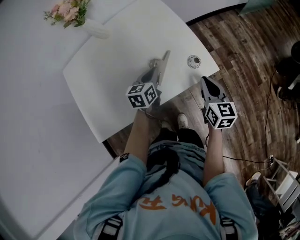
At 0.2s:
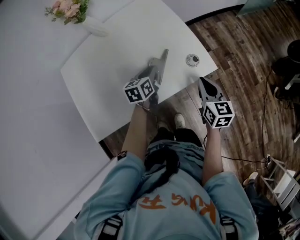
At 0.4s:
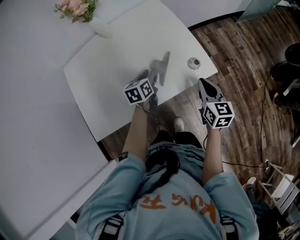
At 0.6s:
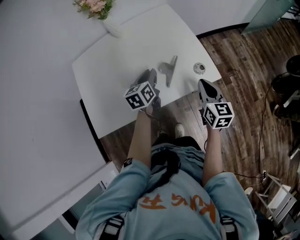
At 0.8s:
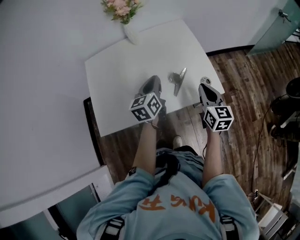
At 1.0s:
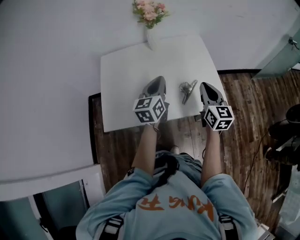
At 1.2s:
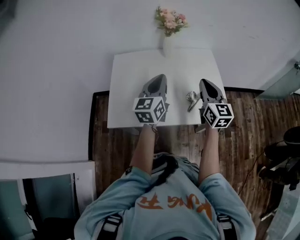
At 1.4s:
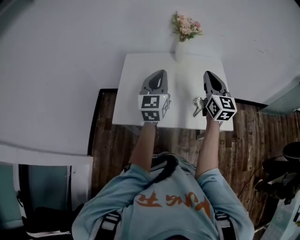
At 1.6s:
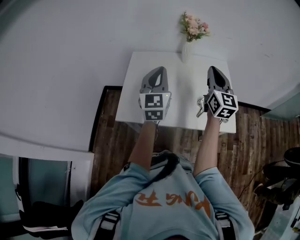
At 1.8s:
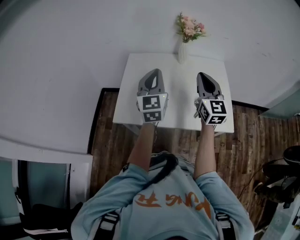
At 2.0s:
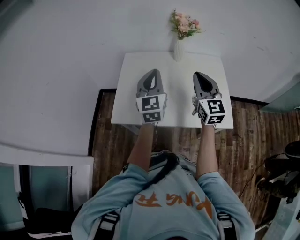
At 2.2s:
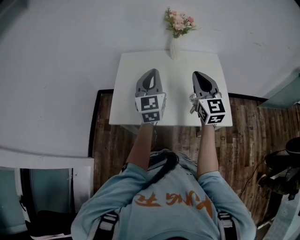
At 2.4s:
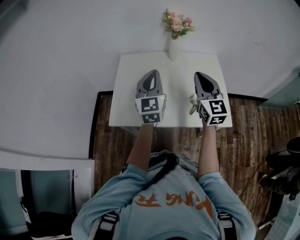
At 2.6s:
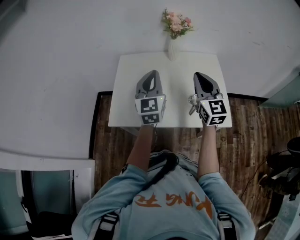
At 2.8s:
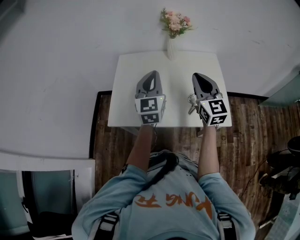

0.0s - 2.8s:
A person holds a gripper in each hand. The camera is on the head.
0.0s - 1.4s: Both grippers move upward, some 30 cm. The left gripper tips its fingers upward by some 30 degrees, and opens, then closes again. The right gripper swivels some 40 degrees.
1.4s - 2.8s: The grippers stay close to where they were, moving slightly.

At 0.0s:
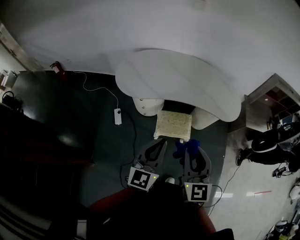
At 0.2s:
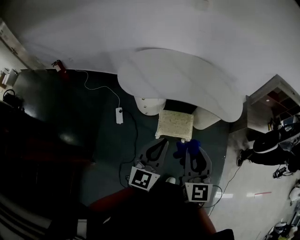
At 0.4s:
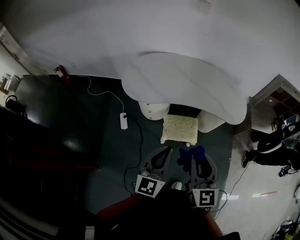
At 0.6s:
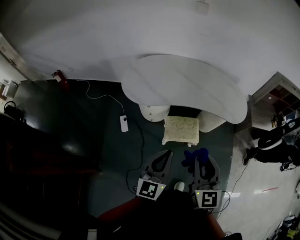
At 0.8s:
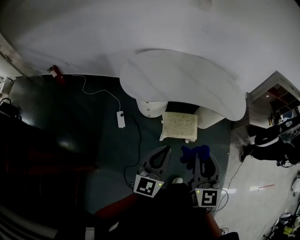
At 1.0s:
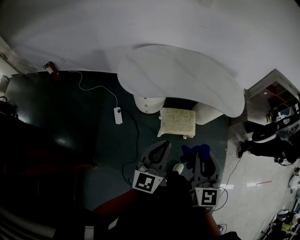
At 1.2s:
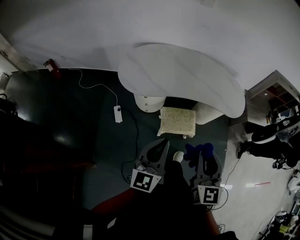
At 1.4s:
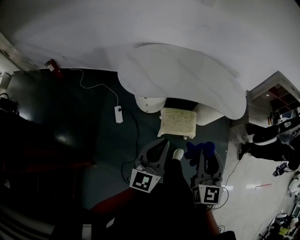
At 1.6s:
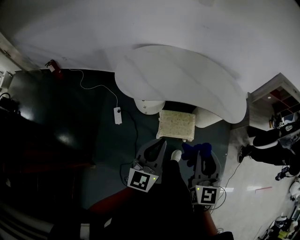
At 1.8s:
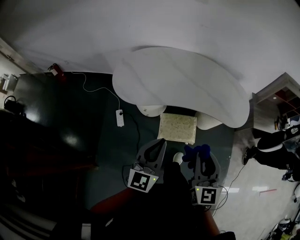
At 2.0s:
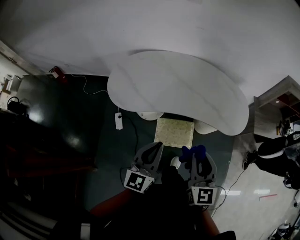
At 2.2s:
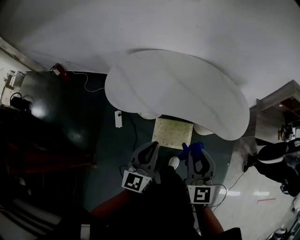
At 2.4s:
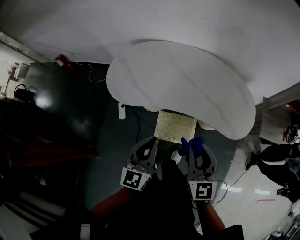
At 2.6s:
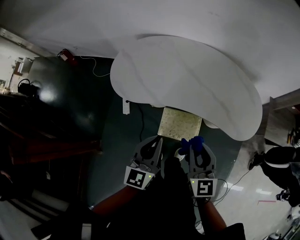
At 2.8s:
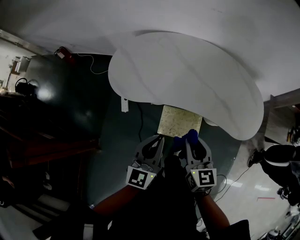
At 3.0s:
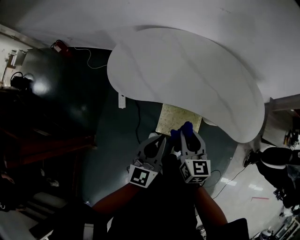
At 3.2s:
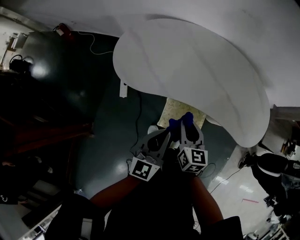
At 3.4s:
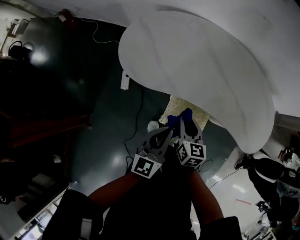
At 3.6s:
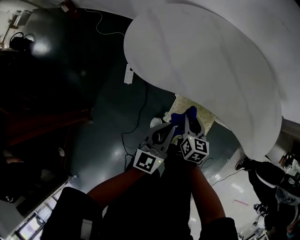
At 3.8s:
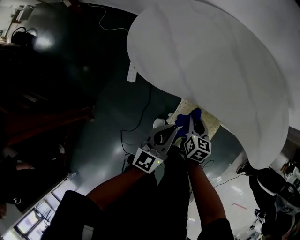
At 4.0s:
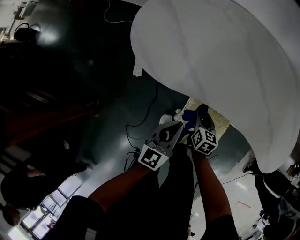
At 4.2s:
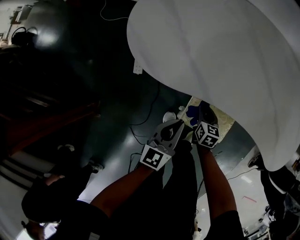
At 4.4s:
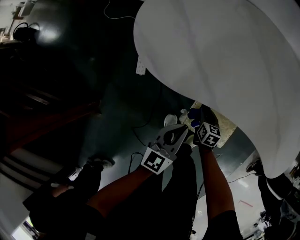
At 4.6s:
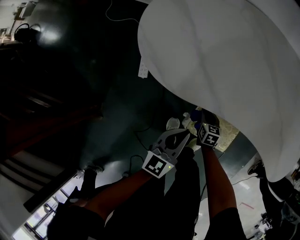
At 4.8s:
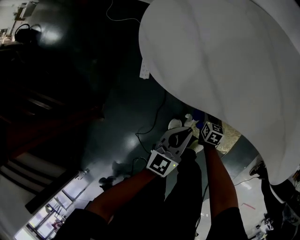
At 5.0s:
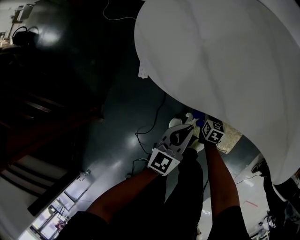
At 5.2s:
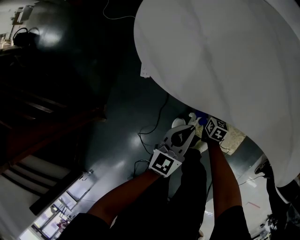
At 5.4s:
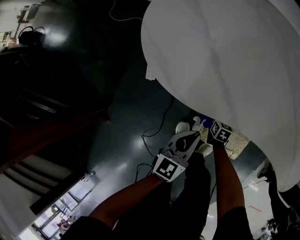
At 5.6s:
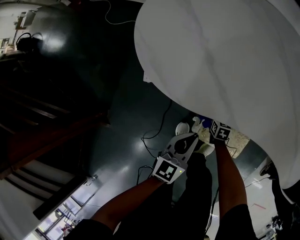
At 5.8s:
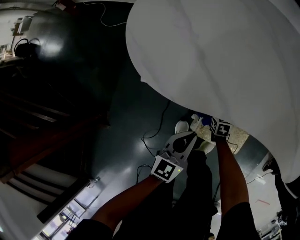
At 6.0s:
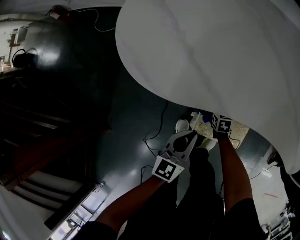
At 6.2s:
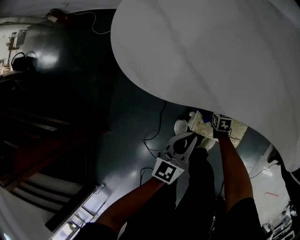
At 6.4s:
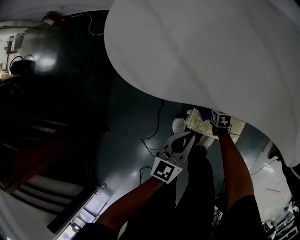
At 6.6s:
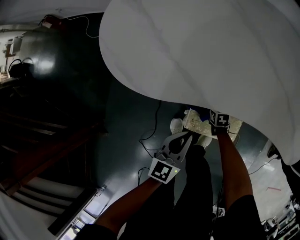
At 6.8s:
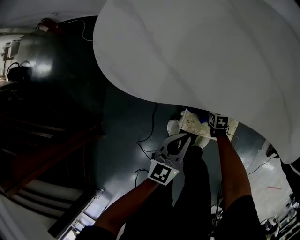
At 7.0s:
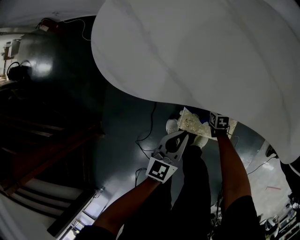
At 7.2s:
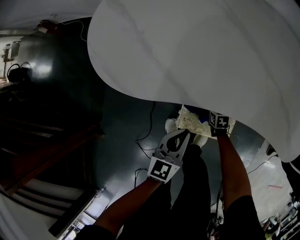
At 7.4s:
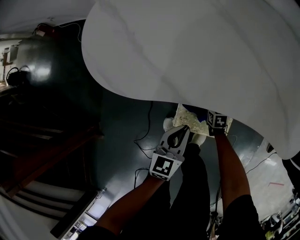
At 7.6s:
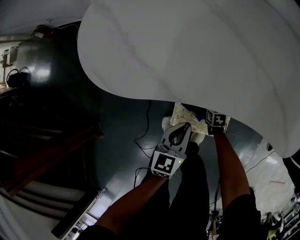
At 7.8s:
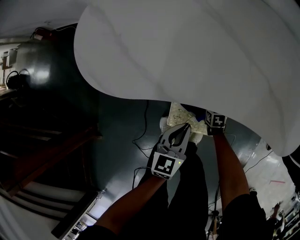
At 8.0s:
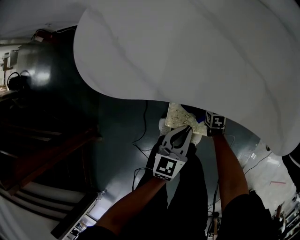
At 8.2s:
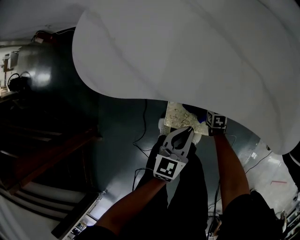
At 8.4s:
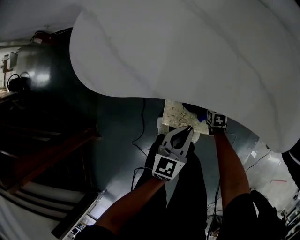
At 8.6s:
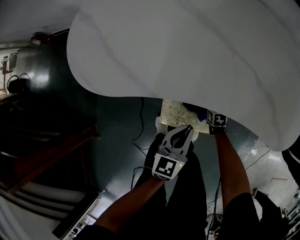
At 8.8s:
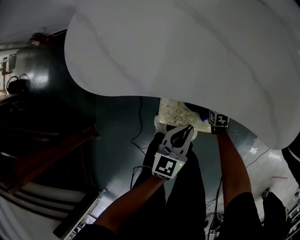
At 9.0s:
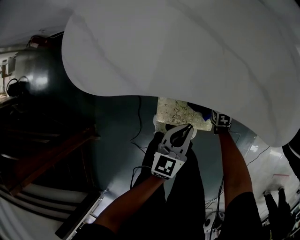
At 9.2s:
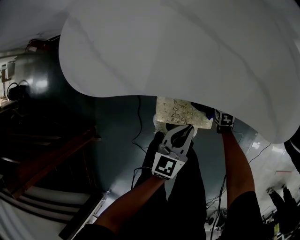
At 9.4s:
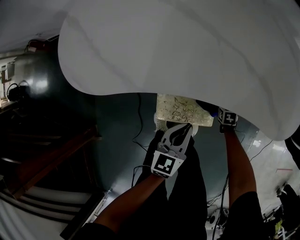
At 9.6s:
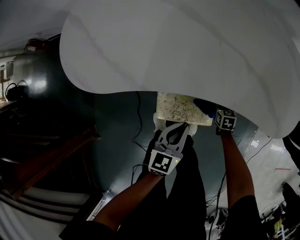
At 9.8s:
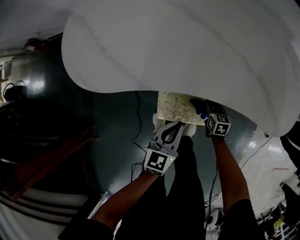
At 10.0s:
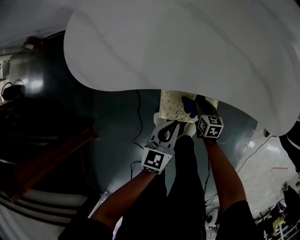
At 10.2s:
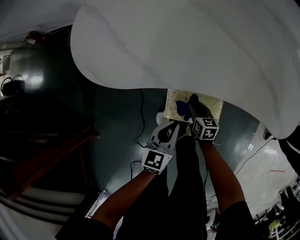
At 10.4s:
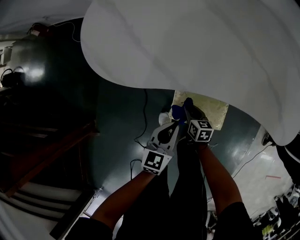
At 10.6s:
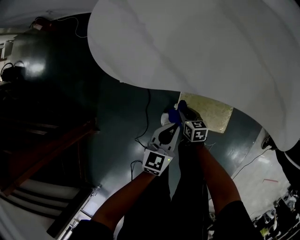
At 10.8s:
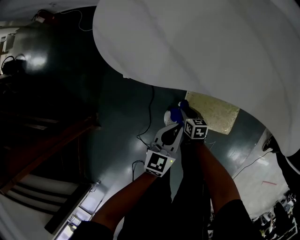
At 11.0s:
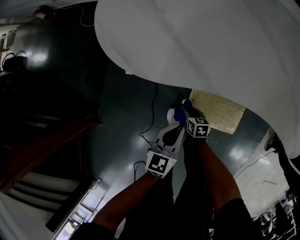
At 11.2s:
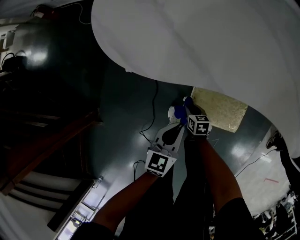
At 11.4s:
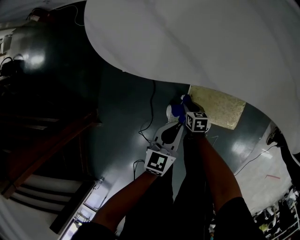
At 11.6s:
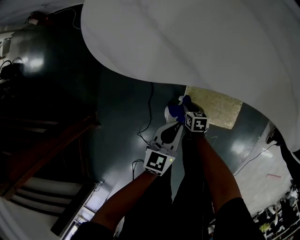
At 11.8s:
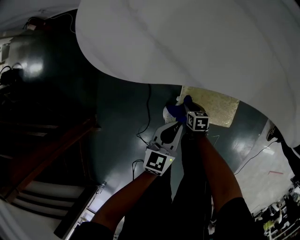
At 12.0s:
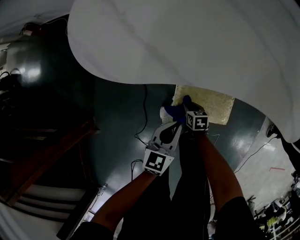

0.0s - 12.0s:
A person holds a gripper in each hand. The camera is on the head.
0.0s - 1.6s: The right gripper moves roughly 5 cm; the left gripper heads to the left, covering about 5 cm.
1.6s - 3.0s: The left gripper travels forward, downward and to the right by about 20 cm. The right gripper shifts some 30 cm forward and downward, and swivels roughly 30 degrees.
3.0s - 4.4s: The right gripper goes about 40 cm downward, and swivels about 30 degrees, while the left gripper travels downward and to the left by approximately 30 cm.
4.4s - 6.0s: The left gripper travels downward by approximately 5 cm. The right gripper goes about 15 cm downward.
6.0s - 7.6s: Both grippers move to the right, about 10 cm.
7.6s - 9.0s: The two grippers go roughly 15 cm to the right.
9.0s - 10.4s: The right gripper shifts roughly 25 cm to the left and upward, and turns by approximately 20 degrees. The left gripper shifts roughly 15 cm to the left.
10.4s - 12.0s: The left gripper goes to the left and returns, some 10 cm each way; the right gripper moves downward, approximately 10 cm.

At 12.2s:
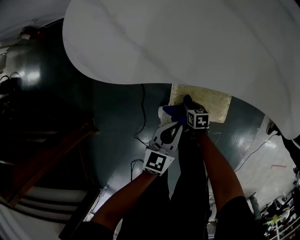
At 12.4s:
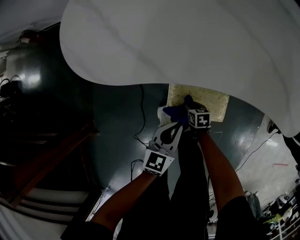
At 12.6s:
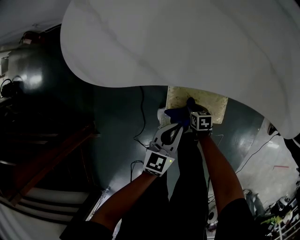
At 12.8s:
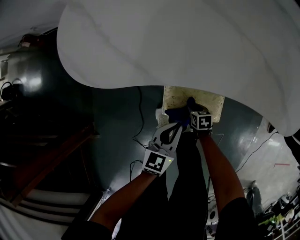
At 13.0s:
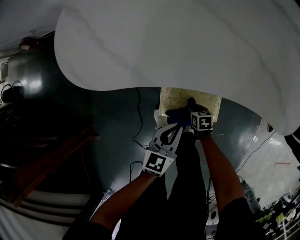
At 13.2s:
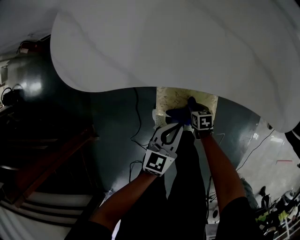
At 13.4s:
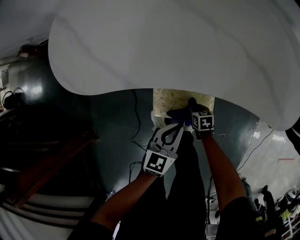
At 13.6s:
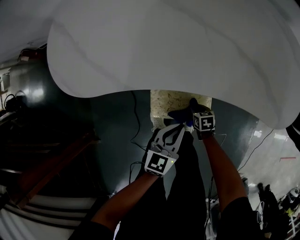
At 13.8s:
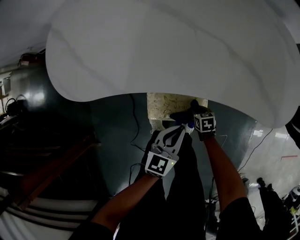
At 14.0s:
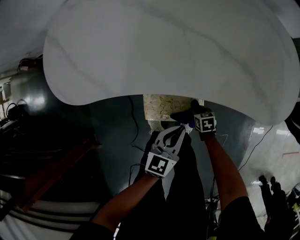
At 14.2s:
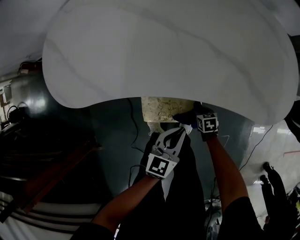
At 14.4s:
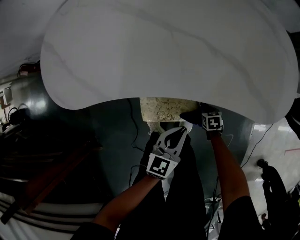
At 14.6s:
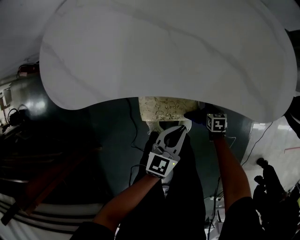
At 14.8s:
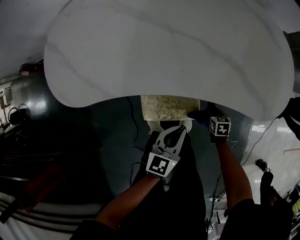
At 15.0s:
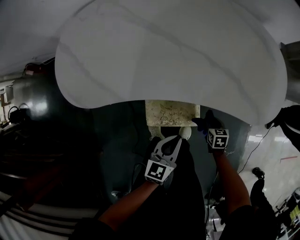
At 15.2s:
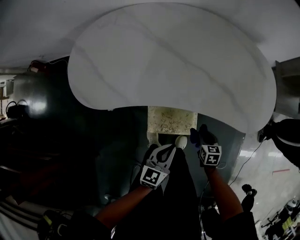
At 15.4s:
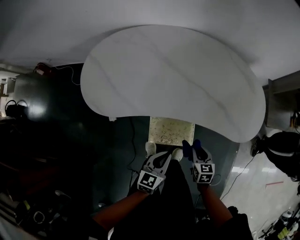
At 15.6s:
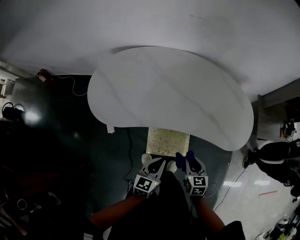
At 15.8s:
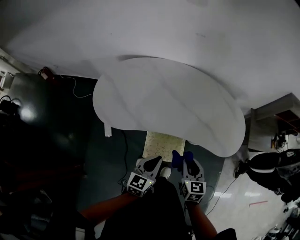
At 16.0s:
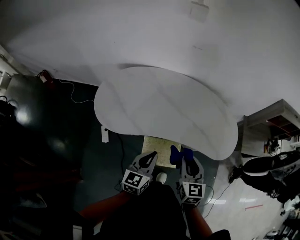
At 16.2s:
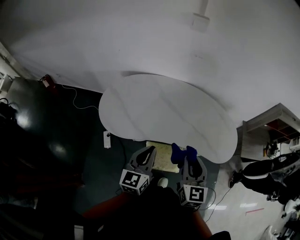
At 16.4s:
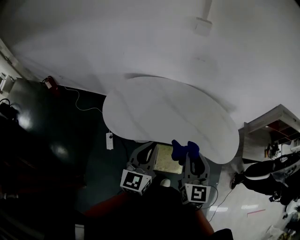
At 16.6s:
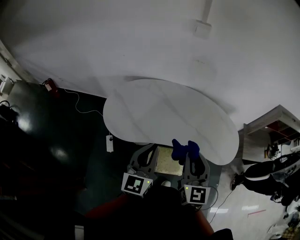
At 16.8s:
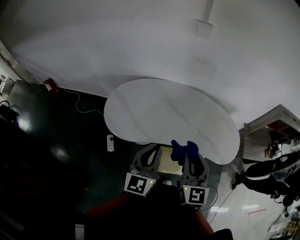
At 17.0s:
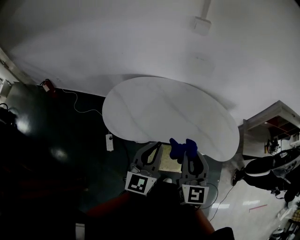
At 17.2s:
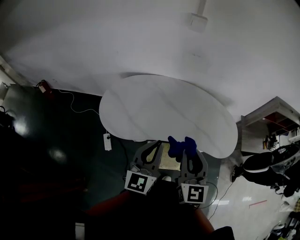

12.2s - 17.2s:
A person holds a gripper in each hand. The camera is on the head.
12.2s - 13.8s: Both grippers travel together to the right, approximately 15 cm.
13.8s - 15.6s: The right gripper goes about 40 cm upward, and swivels approximately 30 degrees, while the left gripper goes some 20 cm upward.
15.6s - 17.2s: The grippers both shift upward by roughly 35 cm. The left gripper points its fingers about 30 degrees further upward. Meanwhile the right gripper angles its fingers upward, by roughly 40 degrees.

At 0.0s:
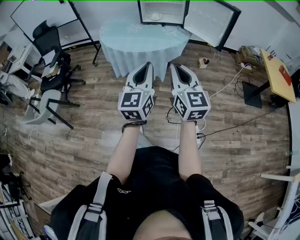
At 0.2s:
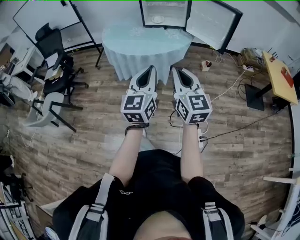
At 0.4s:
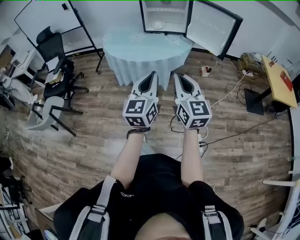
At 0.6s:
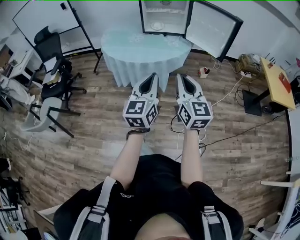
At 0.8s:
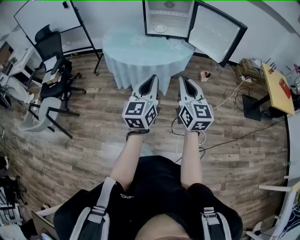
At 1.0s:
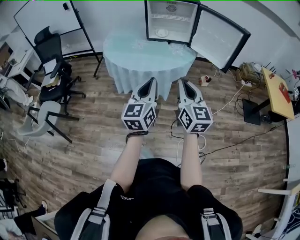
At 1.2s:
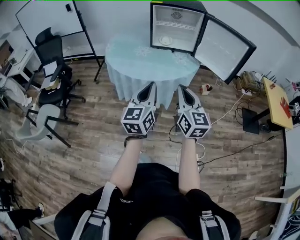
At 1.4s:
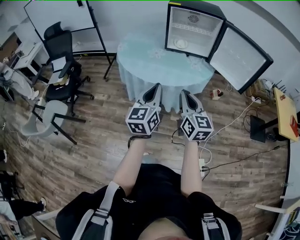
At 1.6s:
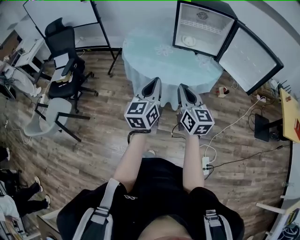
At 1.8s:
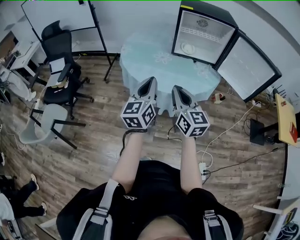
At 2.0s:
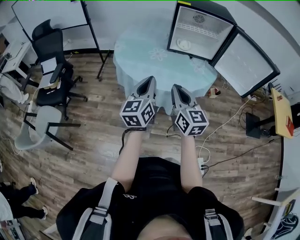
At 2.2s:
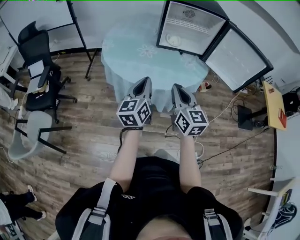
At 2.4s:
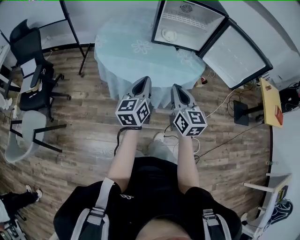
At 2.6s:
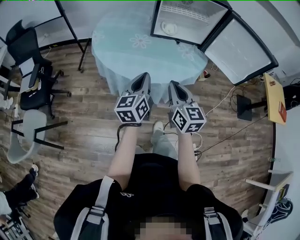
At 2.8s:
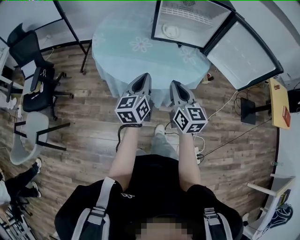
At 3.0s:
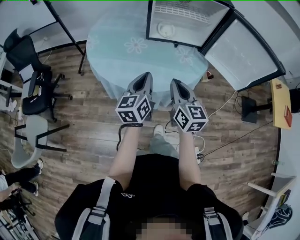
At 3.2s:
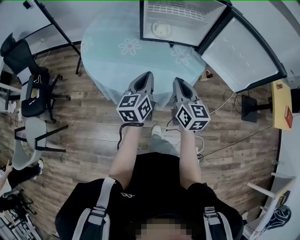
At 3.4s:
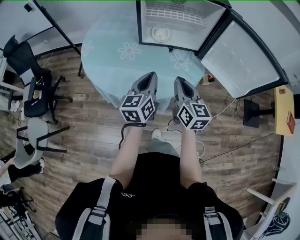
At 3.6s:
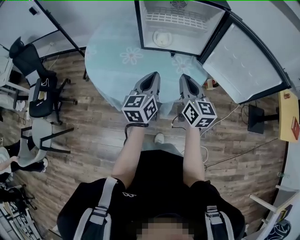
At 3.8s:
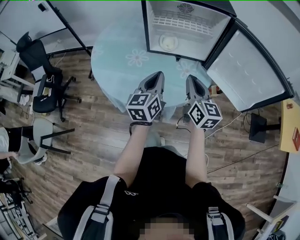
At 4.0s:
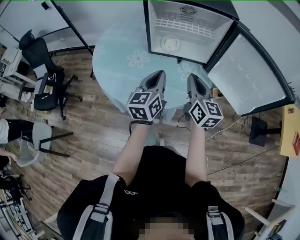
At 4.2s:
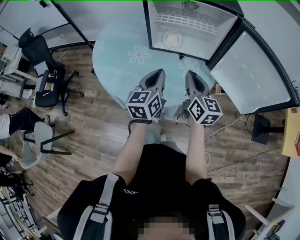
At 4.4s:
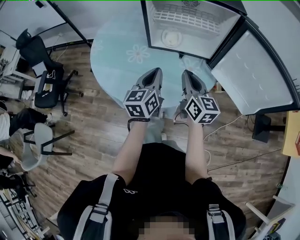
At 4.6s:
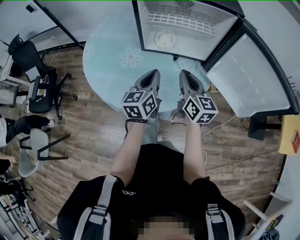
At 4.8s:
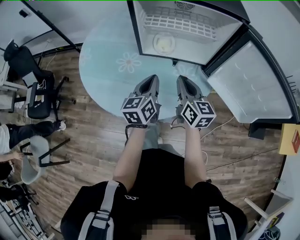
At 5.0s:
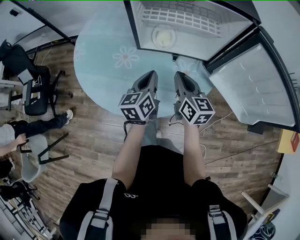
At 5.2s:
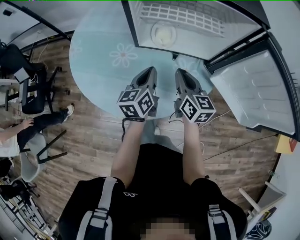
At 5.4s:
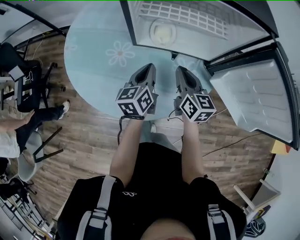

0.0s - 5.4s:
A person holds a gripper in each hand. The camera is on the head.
0.0s - 1.4s: Both grippers move forward and to the left, approximately 20 cm.
1.4s - 2.8s: Both grippers travel together forward, some 20 cm.
2.8s - 4.0s: The left gripper is displaced to the right and forward by approximately 20 cm. Meanwhile the right gripper goes approximately 25 cm forward and to the right.
4.0s - 5.4s: The grippers both shift forward and downward by some 20 cm.
